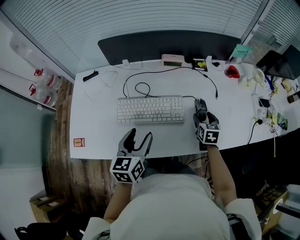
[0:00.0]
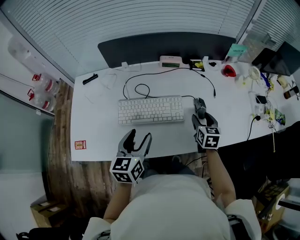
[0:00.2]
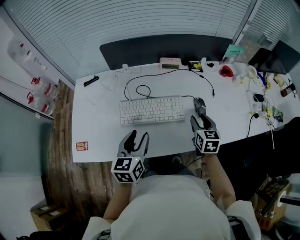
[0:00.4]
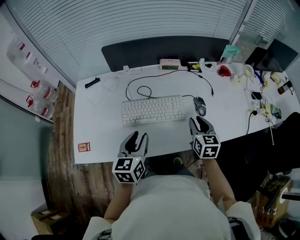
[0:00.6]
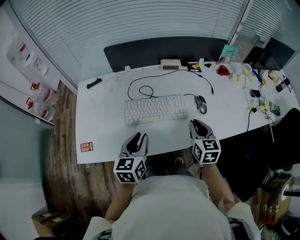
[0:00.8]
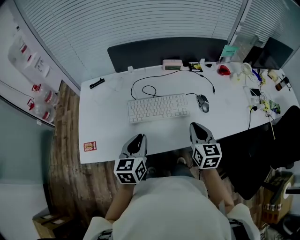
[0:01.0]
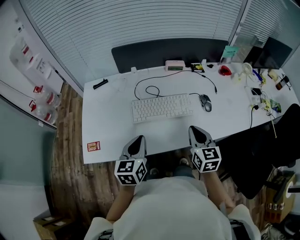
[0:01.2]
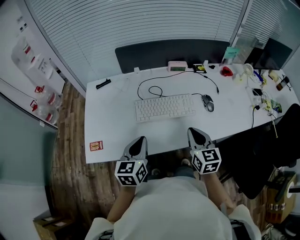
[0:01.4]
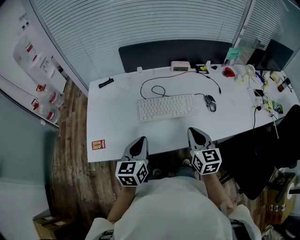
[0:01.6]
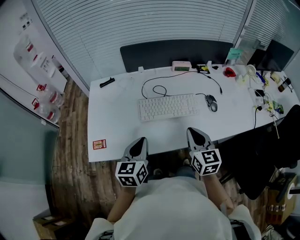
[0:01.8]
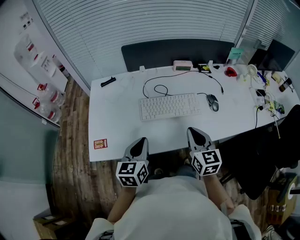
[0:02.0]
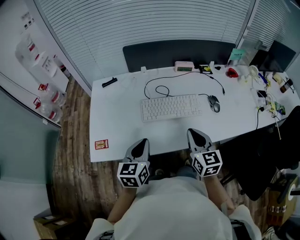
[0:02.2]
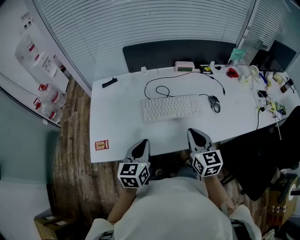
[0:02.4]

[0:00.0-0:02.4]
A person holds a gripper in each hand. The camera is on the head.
0.0 to 1.2 s: The left gripper is displaced to the left and backward by roughly 10 cm, and closes; the right gripper moves backward, to the left and upward, roughly 25 cm, rotates approximately 20 degrees, and closes its fingers.
1.2 to 2.4 s: The right gripper goes approximately 5 cm to the left.

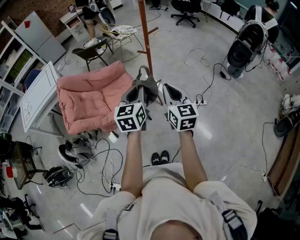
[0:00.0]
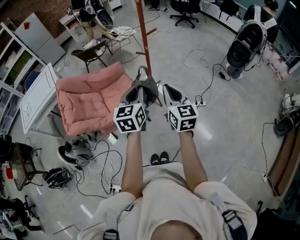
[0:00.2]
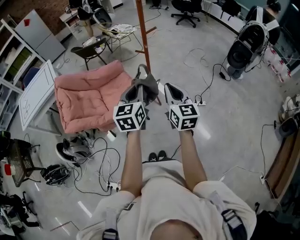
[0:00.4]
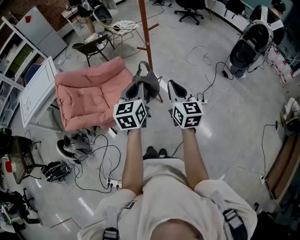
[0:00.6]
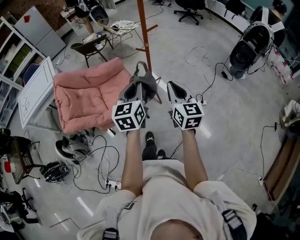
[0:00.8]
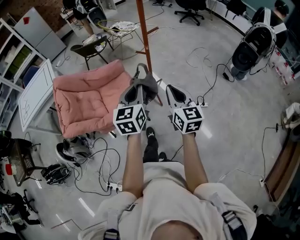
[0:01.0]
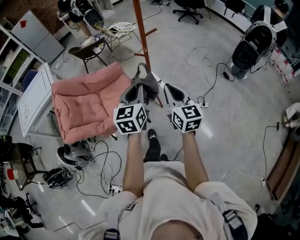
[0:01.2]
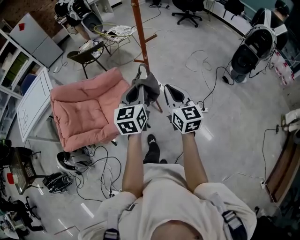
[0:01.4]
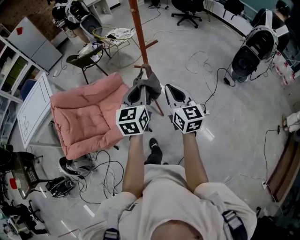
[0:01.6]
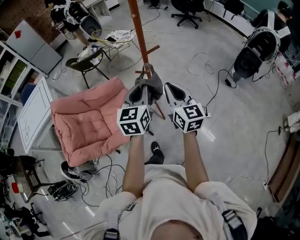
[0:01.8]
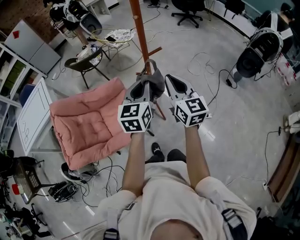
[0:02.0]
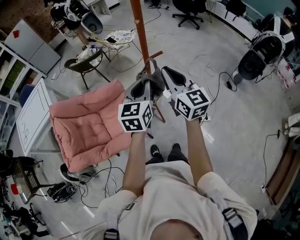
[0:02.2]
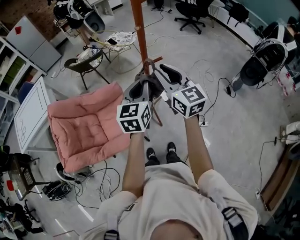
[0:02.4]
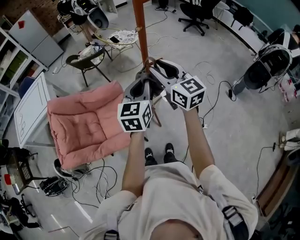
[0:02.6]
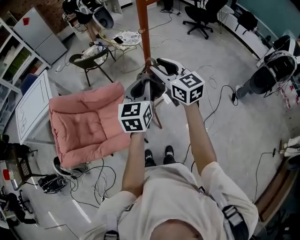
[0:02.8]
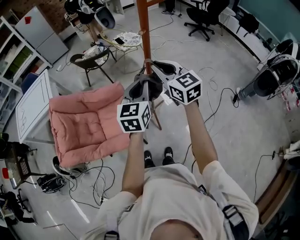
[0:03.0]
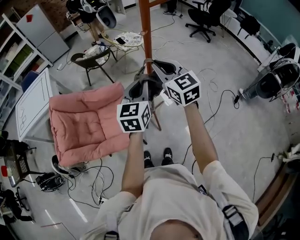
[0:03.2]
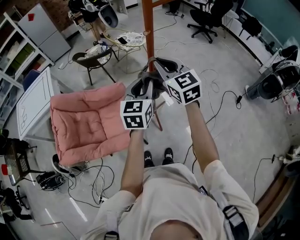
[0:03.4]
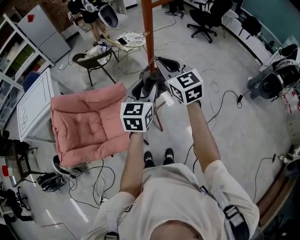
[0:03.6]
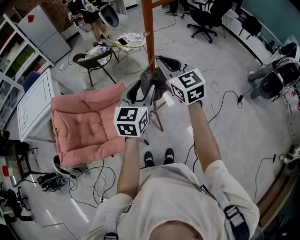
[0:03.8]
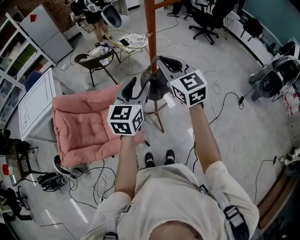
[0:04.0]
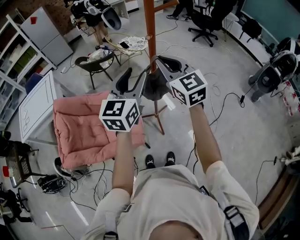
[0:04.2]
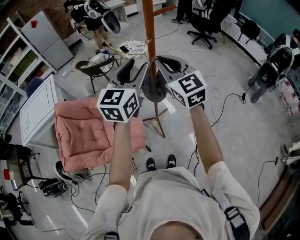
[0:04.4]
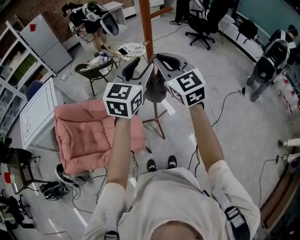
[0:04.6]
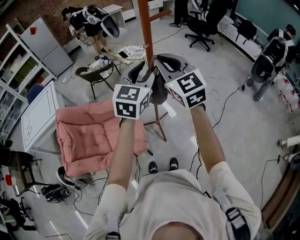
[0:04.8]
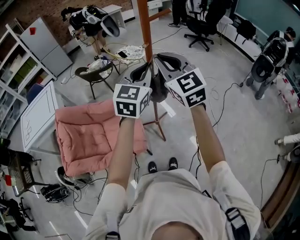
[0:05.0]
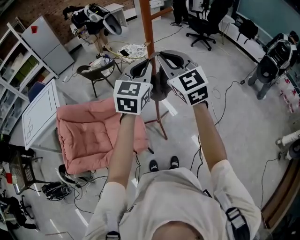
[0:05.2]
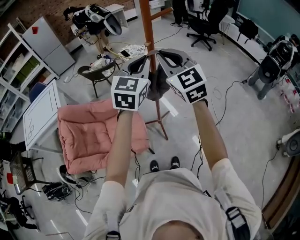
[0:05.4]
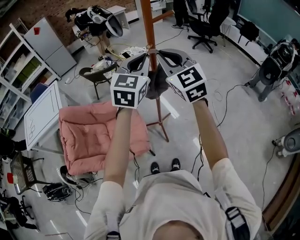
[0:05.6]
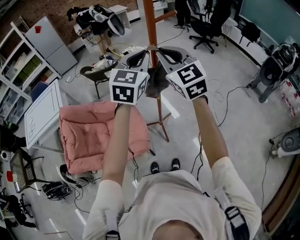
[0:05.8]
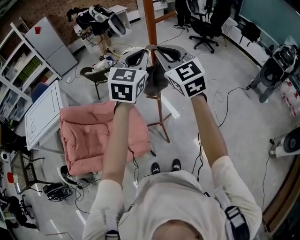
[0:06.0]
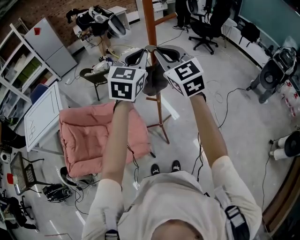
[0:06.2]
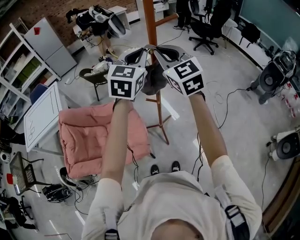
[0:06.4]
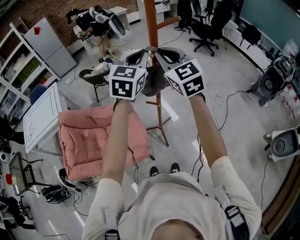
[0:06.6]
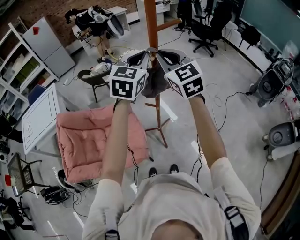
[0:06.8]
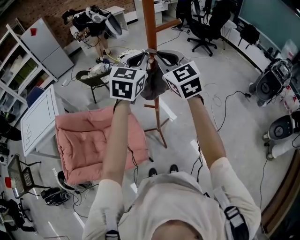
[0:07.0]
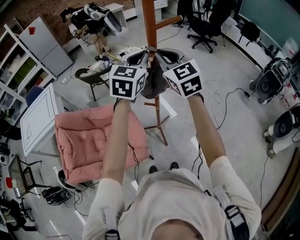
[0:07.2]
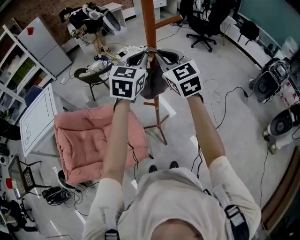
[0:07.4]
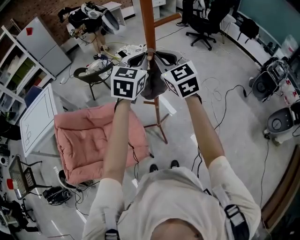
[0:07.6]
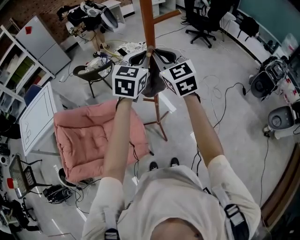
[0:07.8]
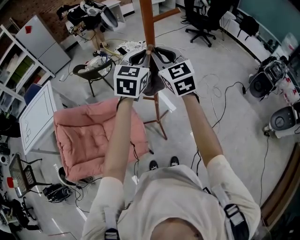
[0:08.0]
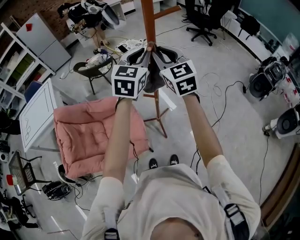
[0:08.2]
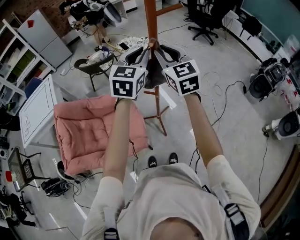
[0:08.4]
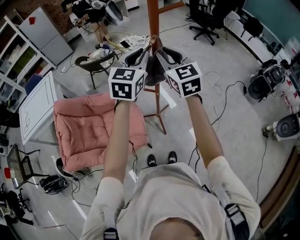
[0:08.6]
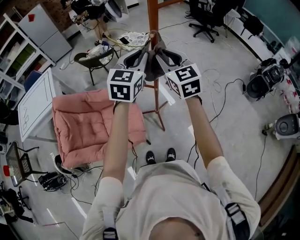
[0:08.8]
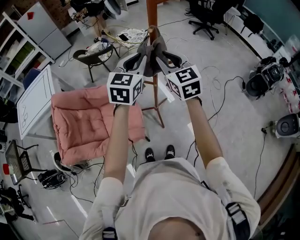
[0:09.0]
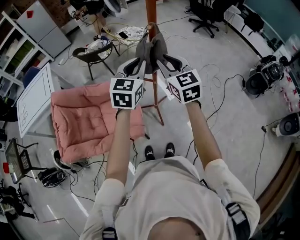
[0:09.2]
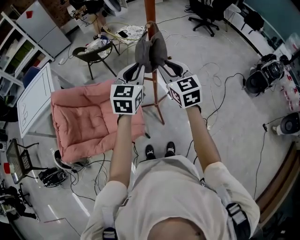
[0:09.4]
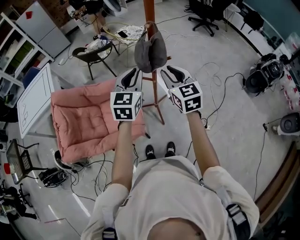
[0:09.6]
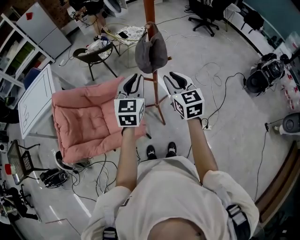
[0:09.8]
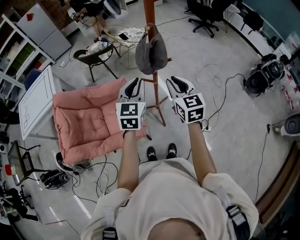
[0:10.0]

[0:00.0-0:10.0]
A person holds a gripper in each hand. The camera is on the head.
0.0 to 1.4 s: Both grippers move forward, roughly 10 cm.
1.4 to 2.8 s: The left gripper is displaced forward by about 15 cm, while the right gripper heads forward and upward, covering approximately 25 cm, rotates roughly 20 degrees, and opens its fingers.
2.8 to 4.2 s: The left gripper goes some 10 cm upward, and opens up; the right gripper heads upward, covering approximately 5 cm, and closes up.
4.2 to 5.8 s: The right gripper shifts some 5 cm upward, while the left gripper shifts about 10 cm upward and forward, and closes its fingers.
5.8 to 7.2 s: The grippers both shift forward by approximately 10 cm.
7.2 to 8.6 s: The left gripper ends up about 5 cm from where it was. The right gripper moves approximately 5 cm.
8.6 to 10.0 s: The two grippers go about 15 cm downward and backward.

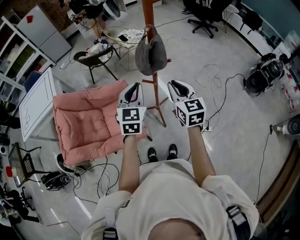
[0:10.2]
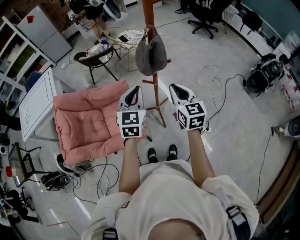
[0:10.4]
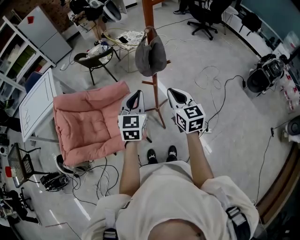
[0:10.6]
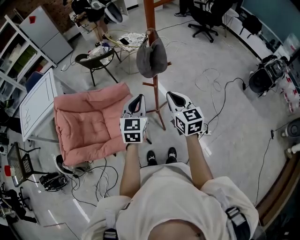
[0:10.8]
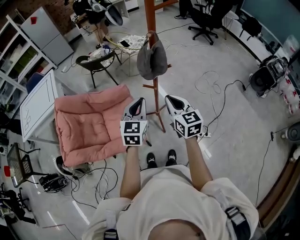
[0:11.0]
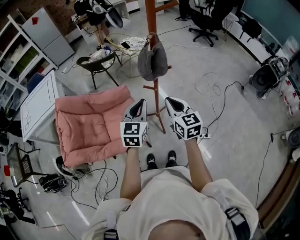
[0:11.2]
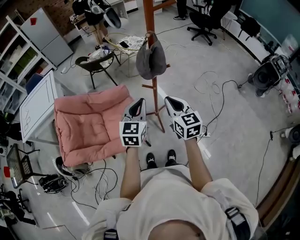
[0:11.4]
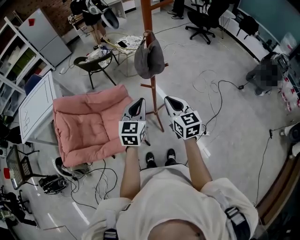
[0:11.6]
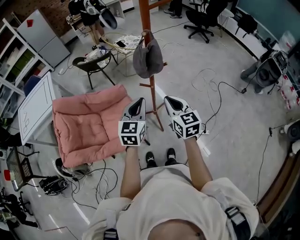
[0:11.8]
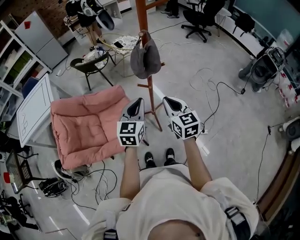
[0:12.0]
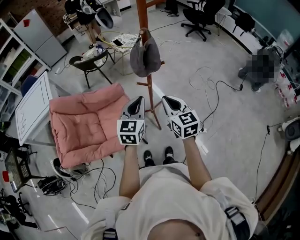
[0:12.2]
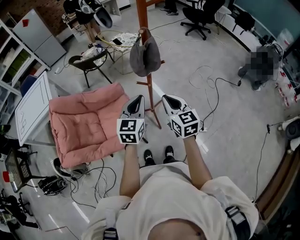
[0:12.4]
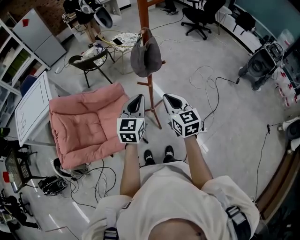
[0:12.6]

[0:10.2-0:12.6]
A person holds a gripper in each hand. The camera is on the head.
10.2 to 11.4 s: The right gripper moves about 5 cm. The left gripper shifts by about 5 cm.
11.4 to 12.6 s: The grippers move only a little.

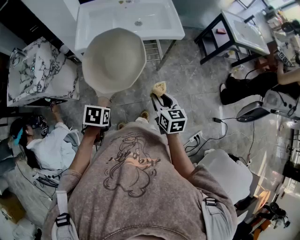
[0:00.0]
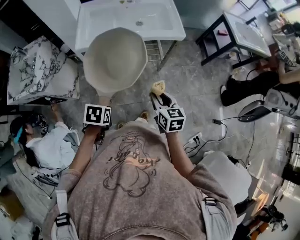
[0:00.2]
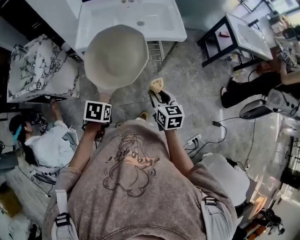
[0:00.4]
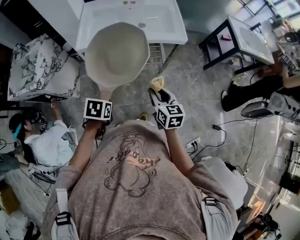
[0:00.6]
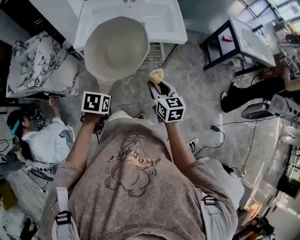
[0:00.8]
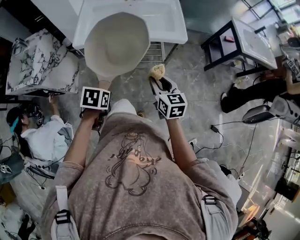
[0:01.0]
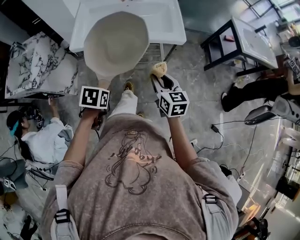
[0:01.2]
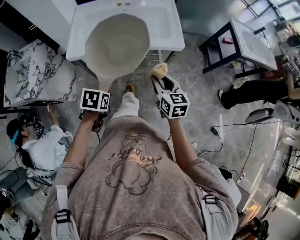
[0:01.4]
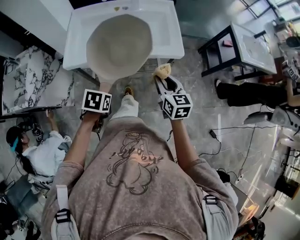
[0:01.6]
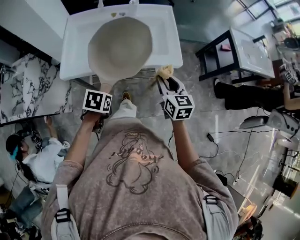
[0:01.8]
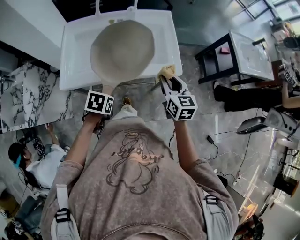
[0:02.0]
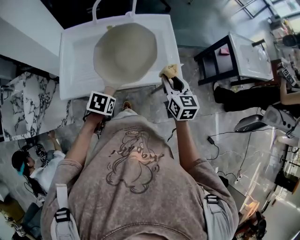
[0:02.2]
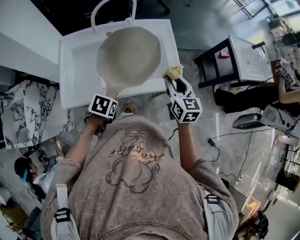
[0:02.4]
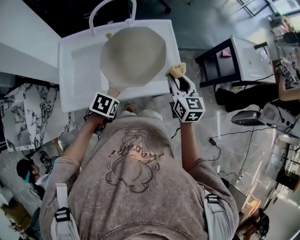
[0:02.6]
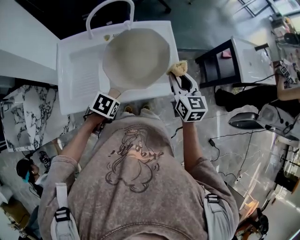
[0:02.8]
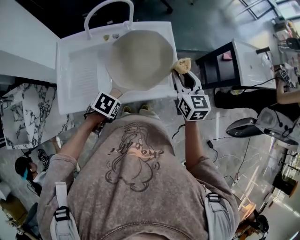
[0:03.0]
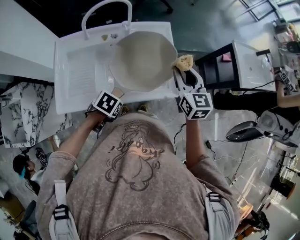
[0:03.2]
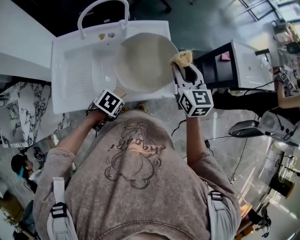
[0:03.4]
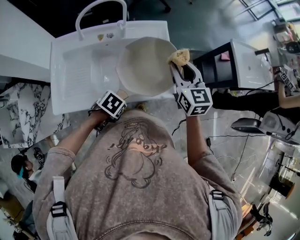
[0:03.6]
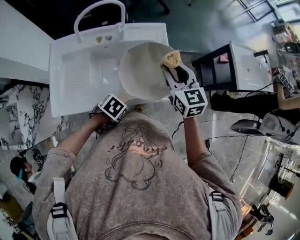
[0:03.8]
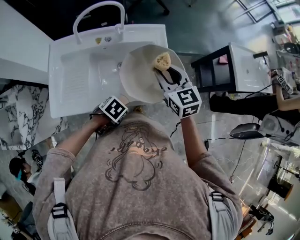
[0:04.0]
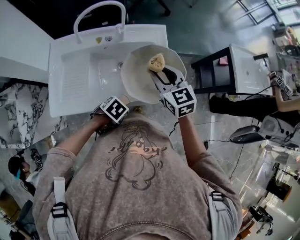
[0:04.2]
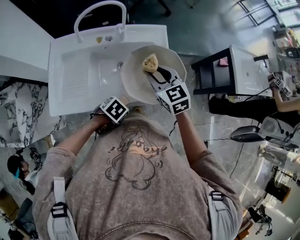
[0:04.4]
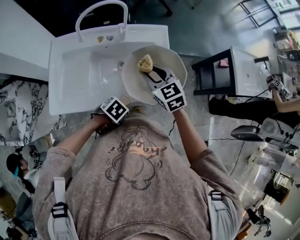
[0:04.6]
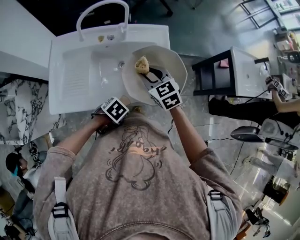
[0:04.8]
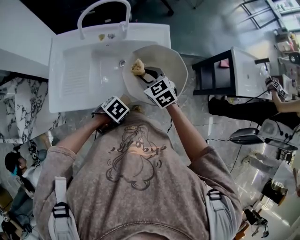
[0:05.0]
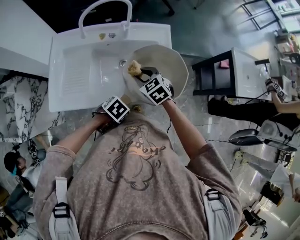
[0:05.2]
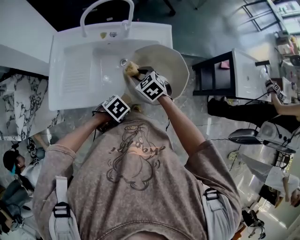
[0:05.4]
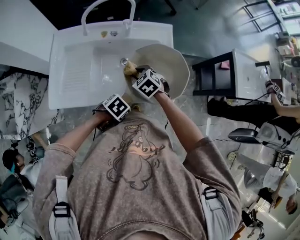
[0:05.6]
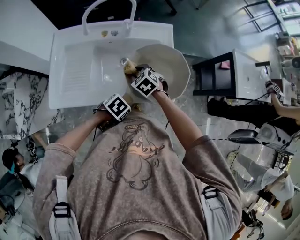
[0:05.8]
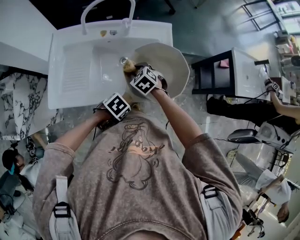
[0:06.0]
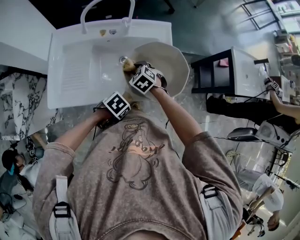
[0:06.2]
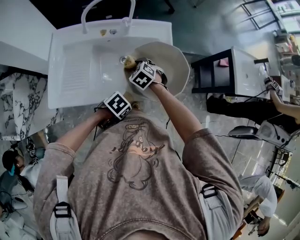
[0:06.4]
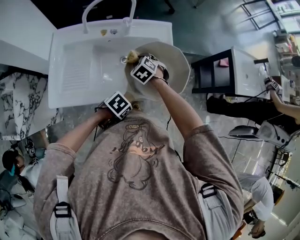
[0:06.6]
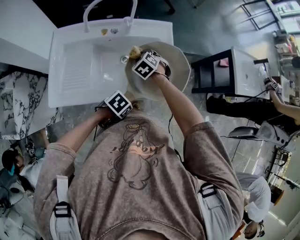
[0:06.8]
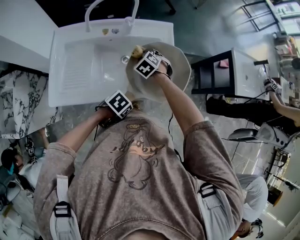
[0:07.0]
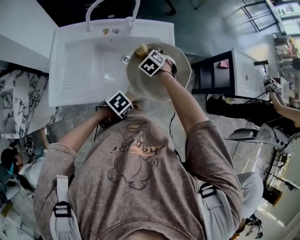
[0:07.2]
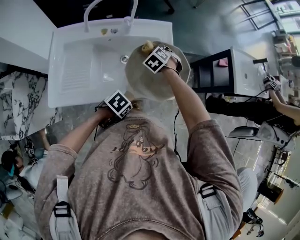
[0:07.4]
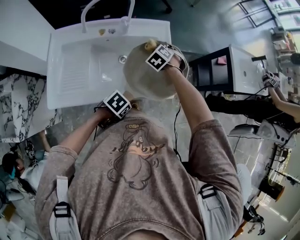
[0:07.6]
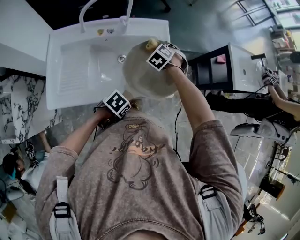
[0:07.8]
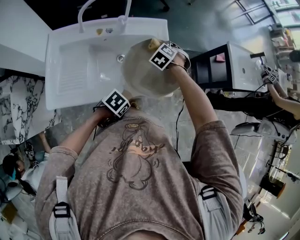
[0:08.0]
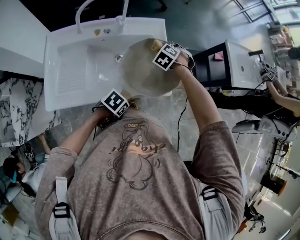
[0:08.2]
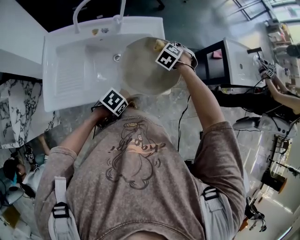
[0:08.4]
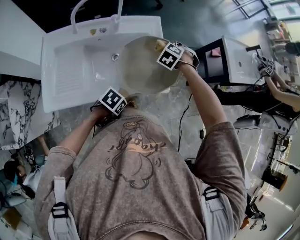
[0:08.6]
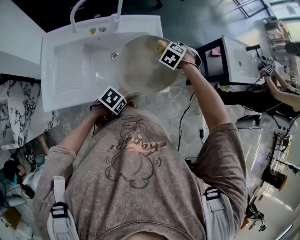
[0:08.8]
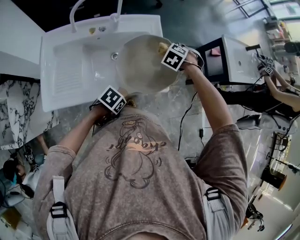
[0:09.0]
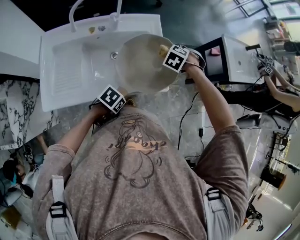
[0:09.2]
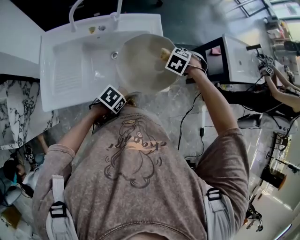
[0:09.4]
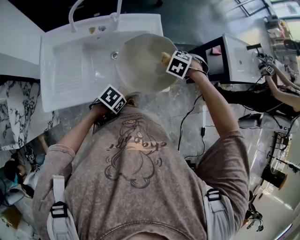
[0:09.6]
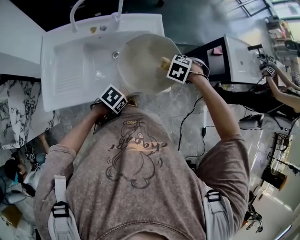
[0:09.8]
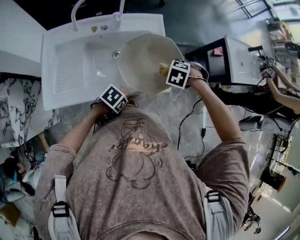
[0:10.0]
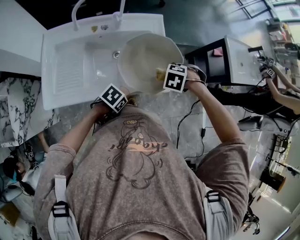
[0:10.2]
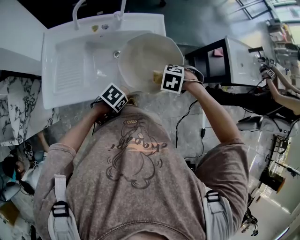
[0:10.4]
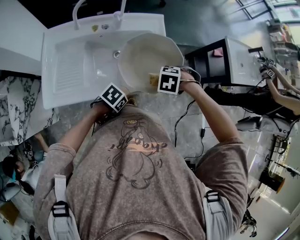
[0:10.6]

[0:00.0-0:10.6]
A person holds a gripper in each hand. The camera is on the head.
0.0 to 1.6 s: The right gripper shifts by approximately 25 cm.
1.6 to 3.0 s: The right gripper moves about 30 cm.
3.0 to 4.6 s: The right gripper shifts by roughly 10 cm, and changes its angle by some 30 degrees.
4.6 to 6.0 s: The right gripper goes approximately 15 cm downward, and swivels some 30 degrees.
6.0 to 7.6 s: The right gripper shifts by about 15 cm, and swivels about 20 degrees.
7.6 to 9.0 s: The right gripper shifts by roughly 10 cm.
9.0 to 10.6 s: The right gripper shifts by approximately 15 cm, and turns by about 30 degrees.
